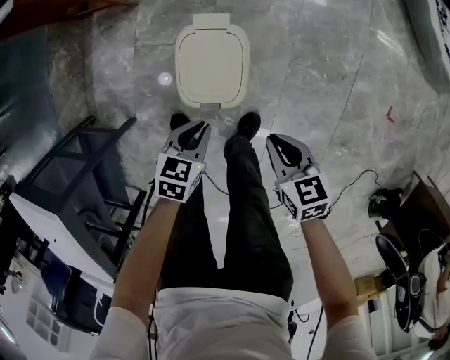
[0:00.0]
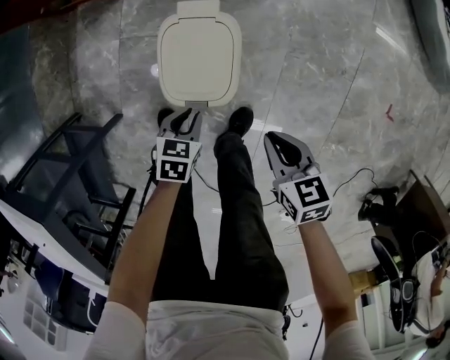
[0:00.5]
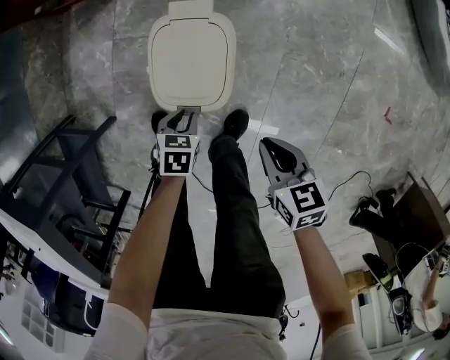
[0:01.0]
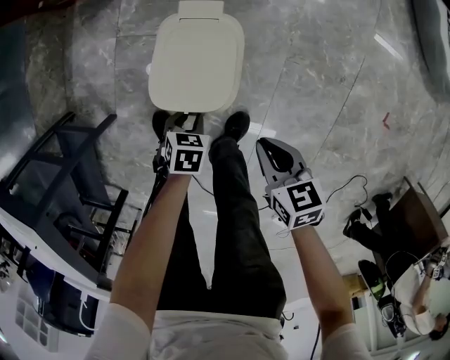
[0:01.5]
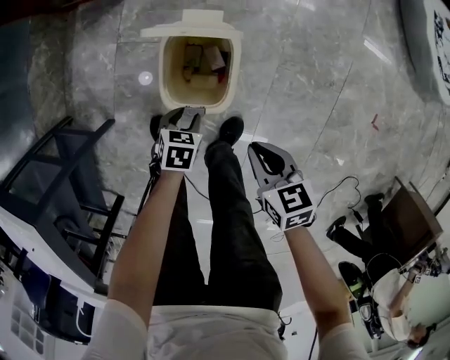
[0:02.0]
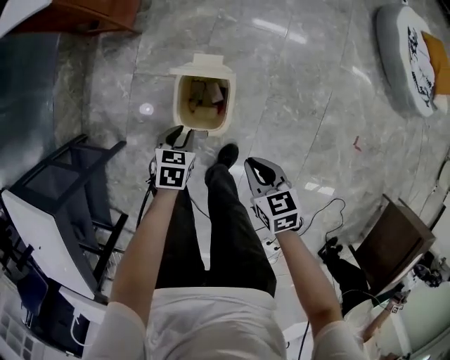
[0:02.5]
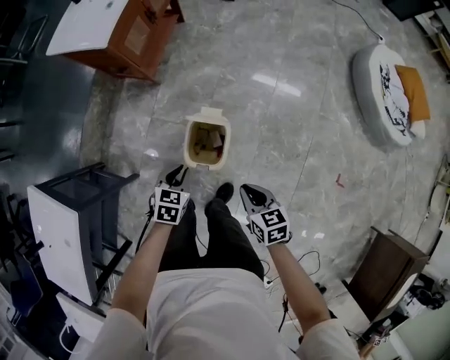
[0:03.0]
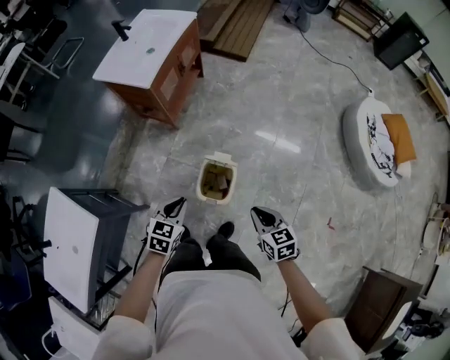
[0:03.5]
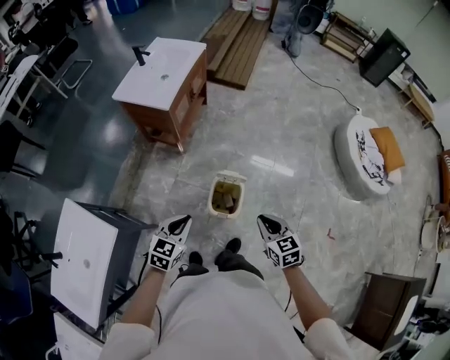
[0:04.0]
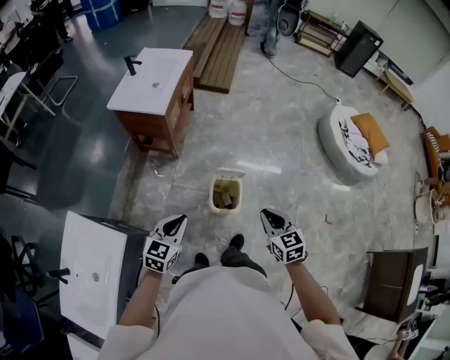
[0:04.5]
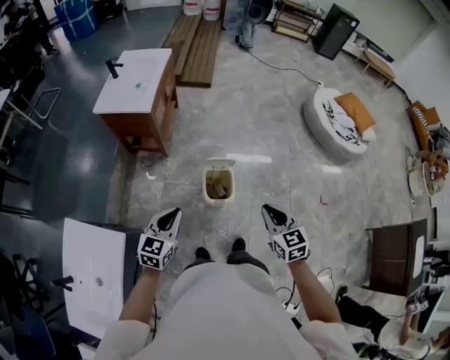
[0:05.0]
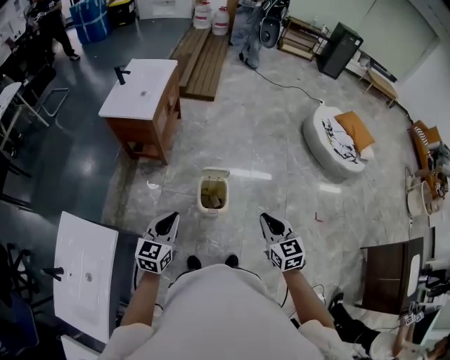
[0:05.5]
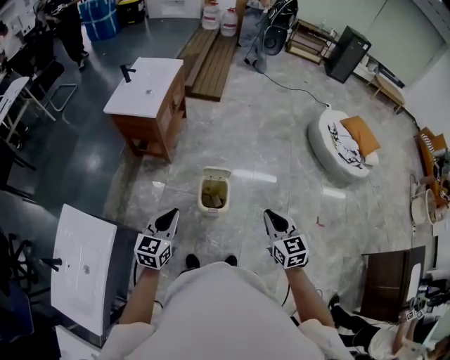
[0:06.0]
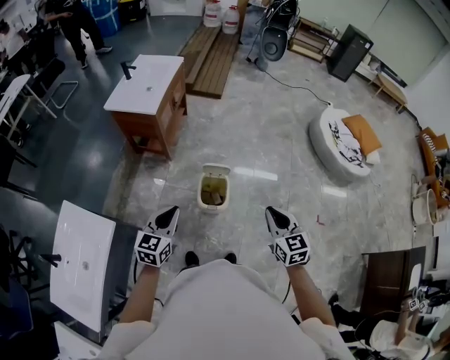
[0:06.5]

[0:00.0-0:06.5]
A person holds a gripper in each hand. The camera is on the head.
0:00.0 to 0:02.0: The left gripper travels downward by approximately 10 cm, and opens its fingers.
0:02.0 to 0:04.5: The grippers both shift upward by some 50 cm. The right gripper turns by approximately 30 degrees; the left gripper angles its fingers upward, by approximately 50 degrees, and closes up.
0:04.5 to 0:06.5: The two grippers go approximately 10 cm to the right and upward.

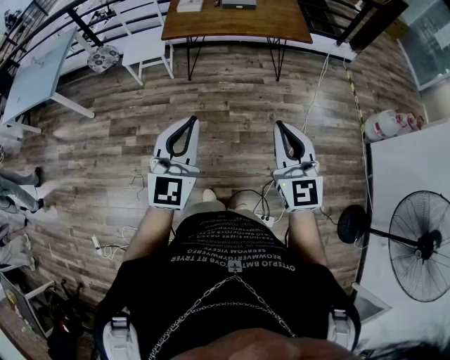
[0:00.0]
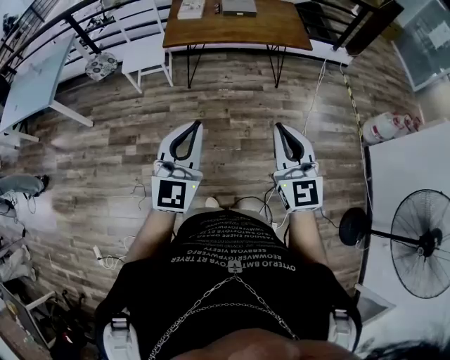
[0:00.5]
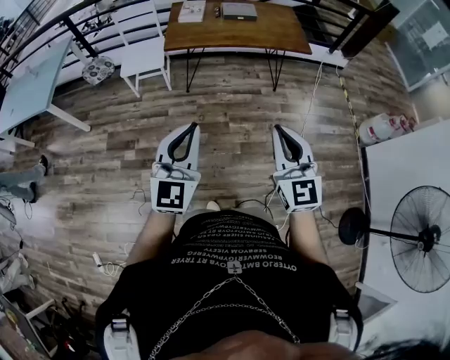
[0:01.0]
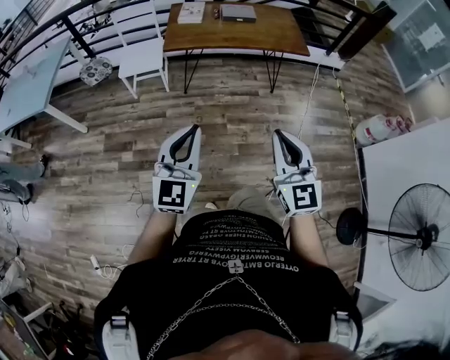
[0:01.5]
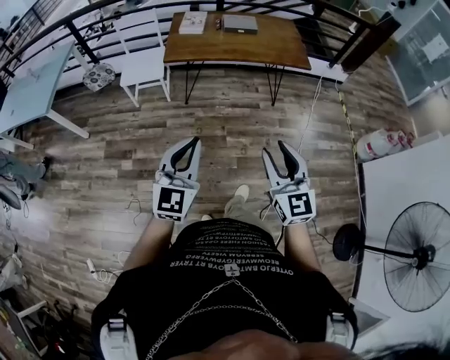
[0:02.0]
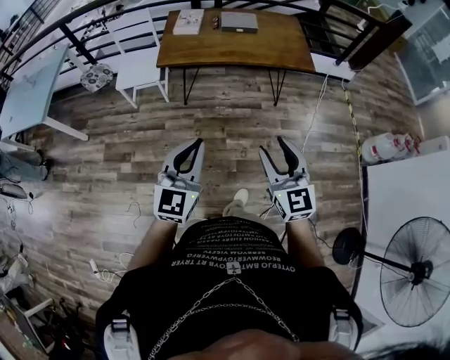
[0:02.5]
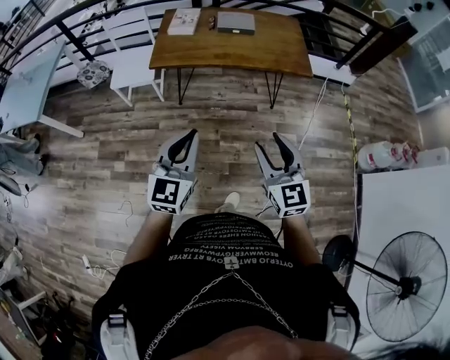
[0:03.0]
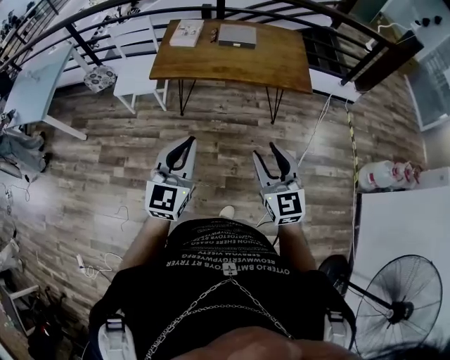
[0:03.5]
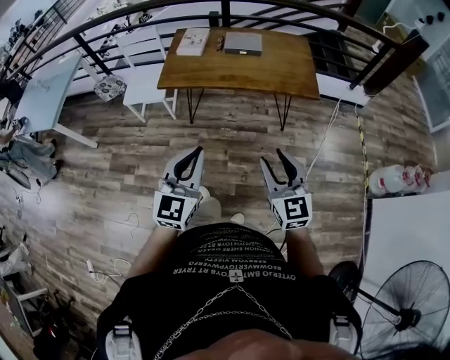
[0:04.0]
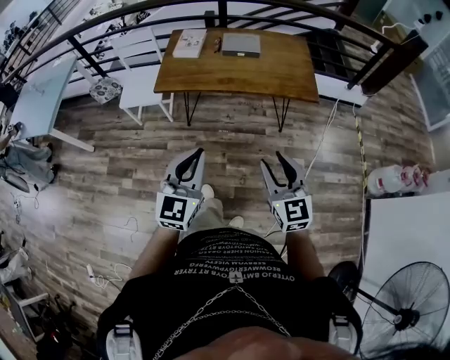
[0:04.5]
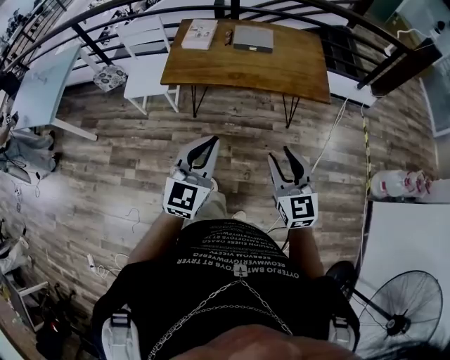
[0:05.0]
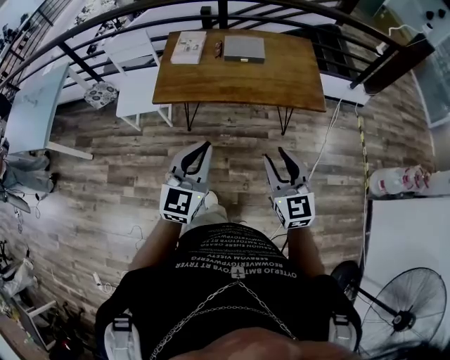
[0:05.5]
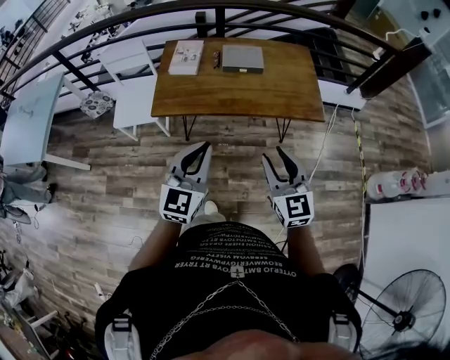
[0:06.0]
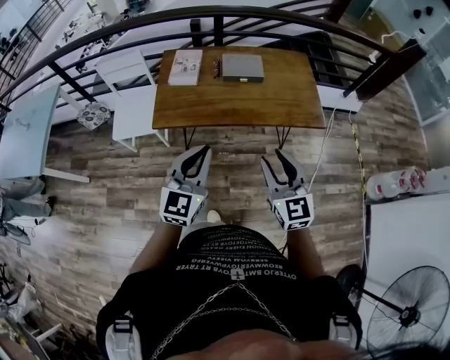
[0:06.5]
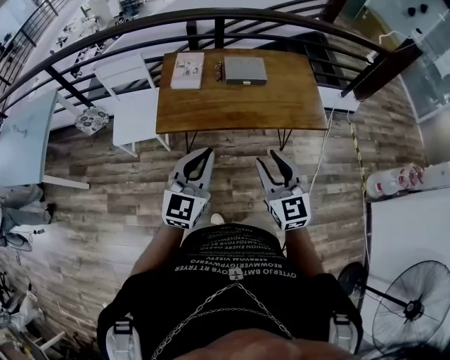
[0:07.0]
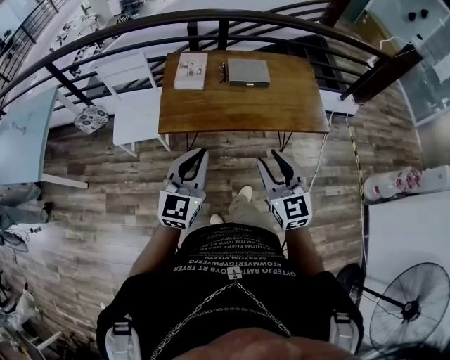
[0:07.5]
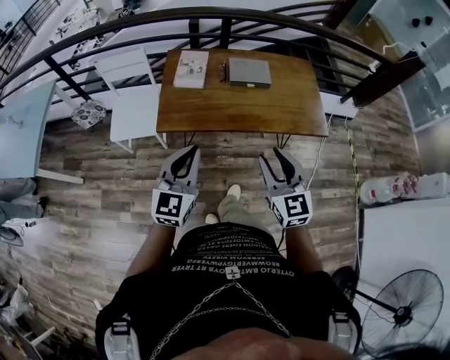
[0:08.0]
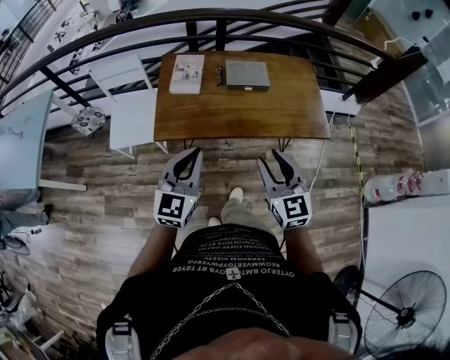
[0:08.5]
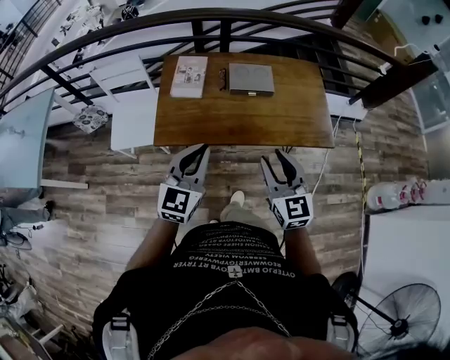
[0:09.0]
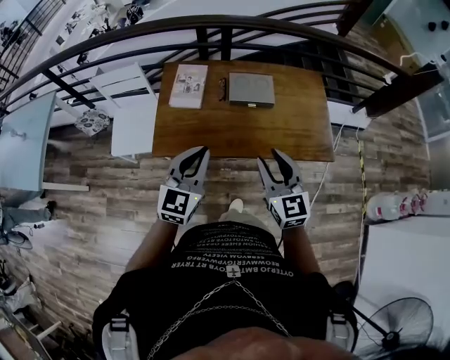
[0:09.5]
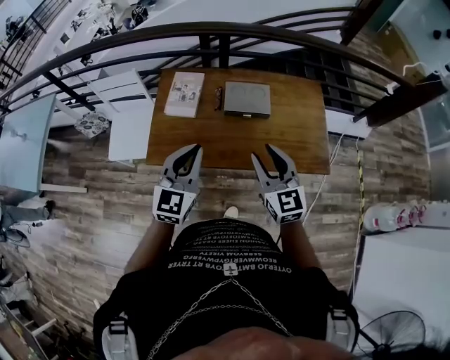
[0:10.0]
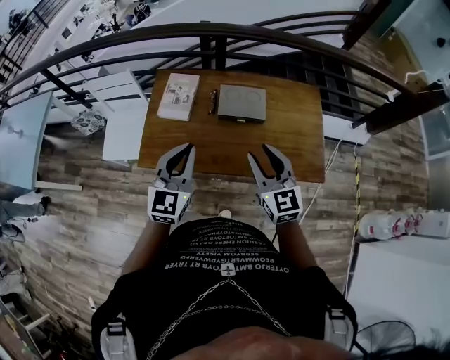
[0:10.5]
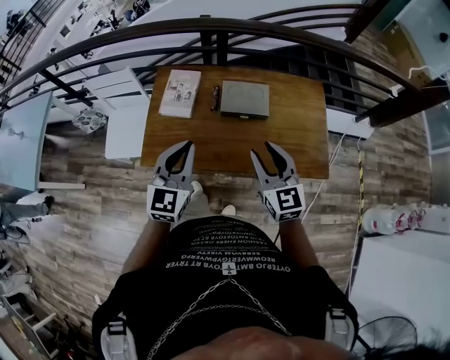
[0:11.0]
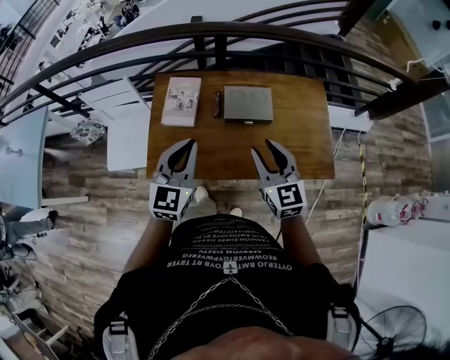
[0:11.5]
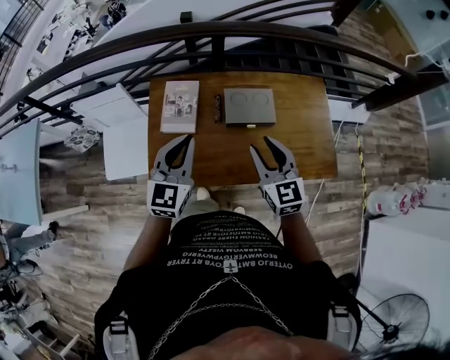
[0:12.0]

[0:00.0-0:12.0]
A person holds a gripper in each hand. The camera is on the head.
0:00.0 to 0:02.0: The right gripper moves to the left and forward, approximately 10 cm, and opens up. The left gripper shifts approximately 10 cm forward and to the left.
0:02.0 to 0:04.0: Both grippers travel together forward and to the right, roughly 30 cm.
0:04.0 to 0:06.0: Both grippers move forward, some 25 cm.
0:06.0 to 0:08.0: Both grippers travel together to the left and forward, some 15 cm.
0:08.0 to 0:10.0: The right gripper goes about 25 cm forward. The left gripper goes approximately 25 cm forward and to the right.
0:10.0 to 0:12.0: The two grippers go some 20 cm forward.

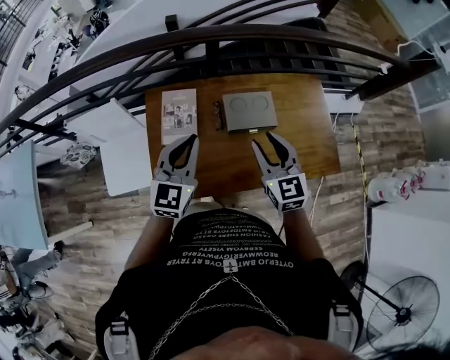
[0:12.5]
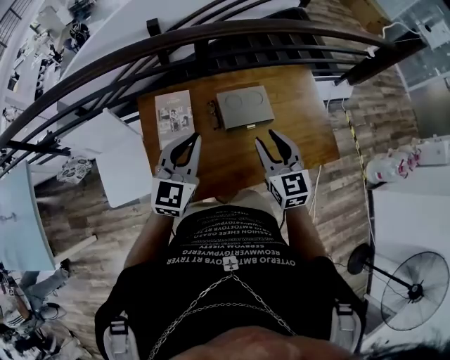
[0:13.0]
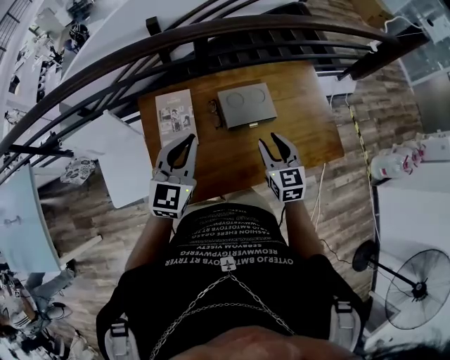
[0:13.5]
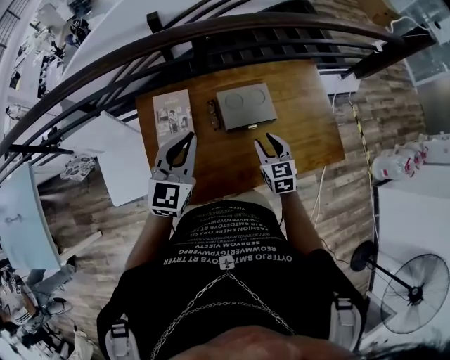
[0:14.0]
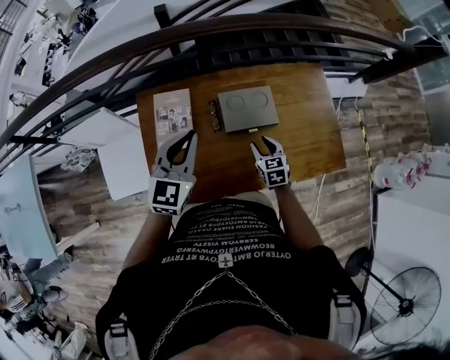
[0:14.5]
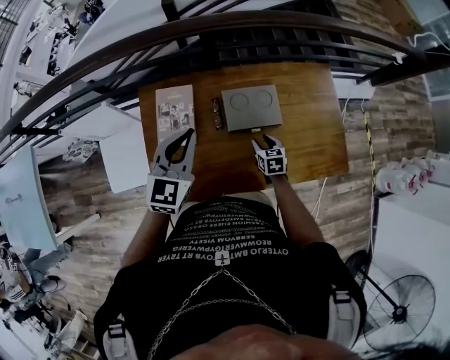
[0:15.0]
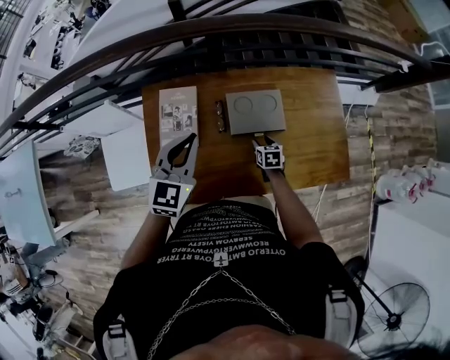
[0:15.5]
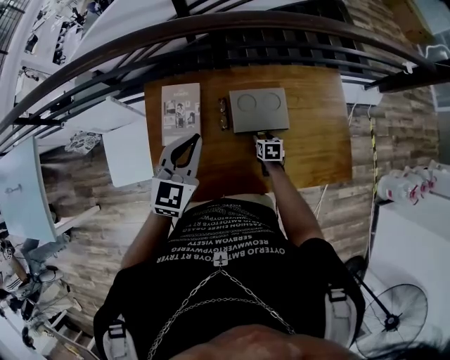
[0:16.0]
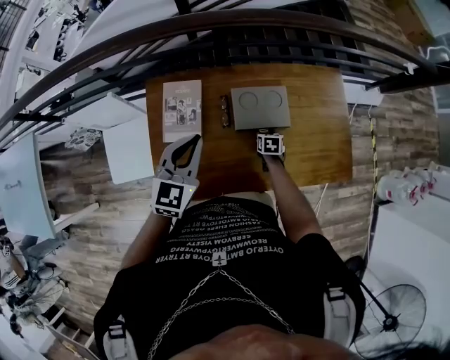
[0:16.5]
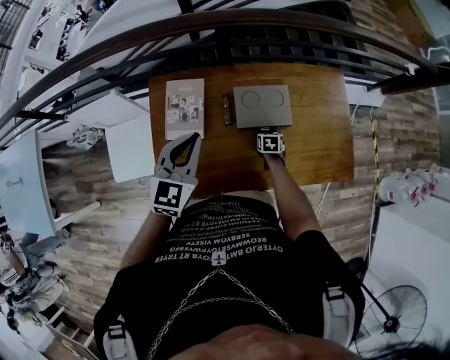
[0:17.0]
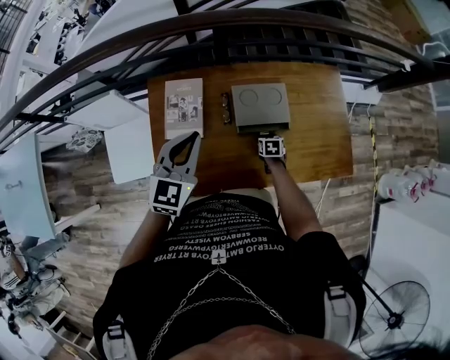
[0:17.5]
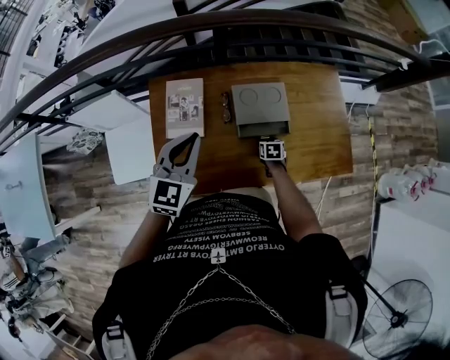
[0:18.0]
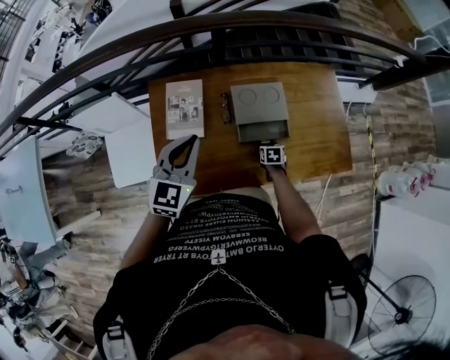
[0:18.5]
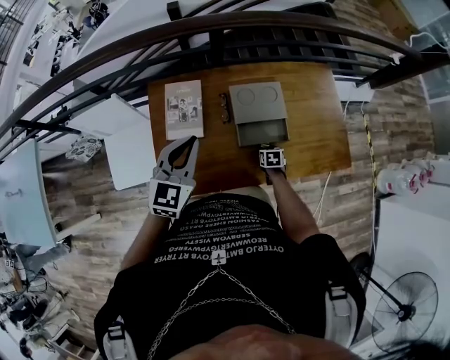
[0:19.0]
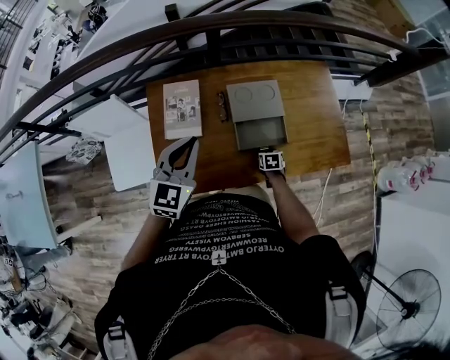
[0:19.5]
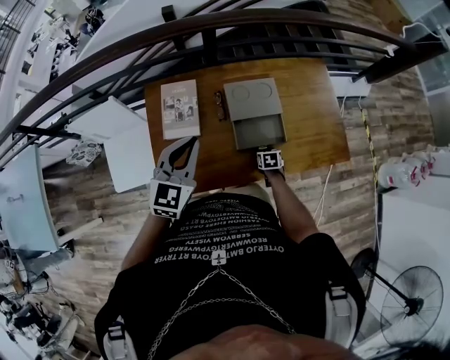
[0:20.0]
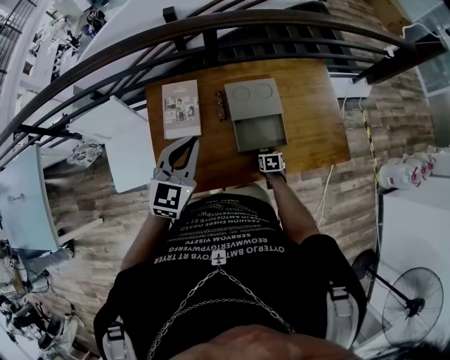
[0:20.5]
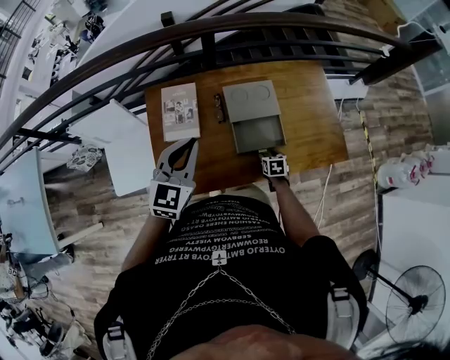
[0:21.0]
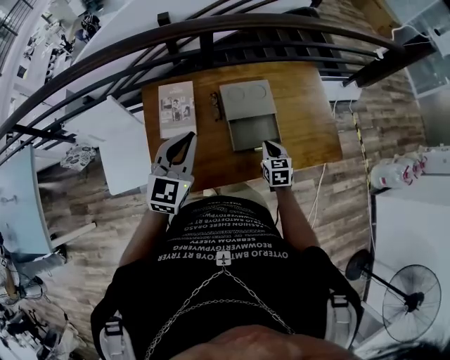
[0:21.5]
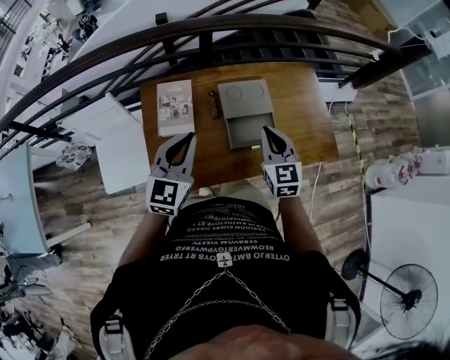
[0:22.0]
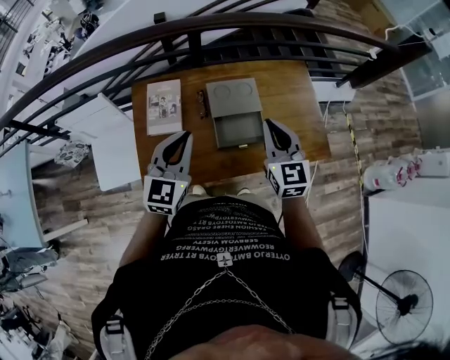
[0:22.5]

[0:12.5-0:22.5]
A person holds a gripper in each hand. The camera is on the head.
0:12.5 to 0:14.5: The right gripper goes some 25 cm downward, and swivels about 30 degrees; the left gripper moves forward, about 10 cm.
0:14.5 to 0:16.5: The right gripper shifts roughly 15 cm downward and forward, and rotates some 30 degrees.
0:16.5 to 0:18.5: The right gripper heads backward, covering roughly 10 cm. Meanwhile the left gripper moves backward, approximately 5 cm.
0:18.5 to 0:20.5: The right gripper moves backward, about 5 cm.
0:20.5 to 0:22.5: The left gripper shifts by some 5 cm. The right gripper travels upward by some 40 cm, tilts its fingers roughly 50 degrees upward, and closes its fingers.
